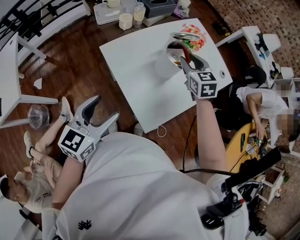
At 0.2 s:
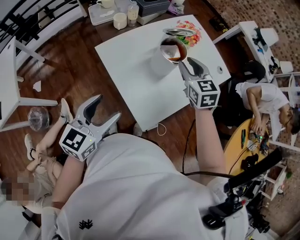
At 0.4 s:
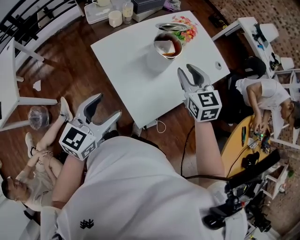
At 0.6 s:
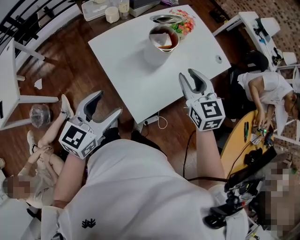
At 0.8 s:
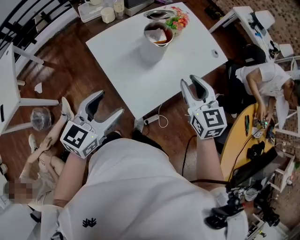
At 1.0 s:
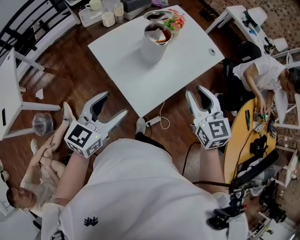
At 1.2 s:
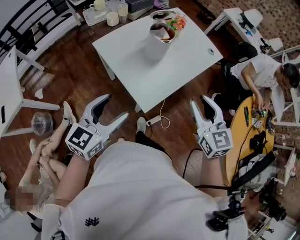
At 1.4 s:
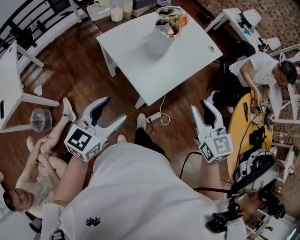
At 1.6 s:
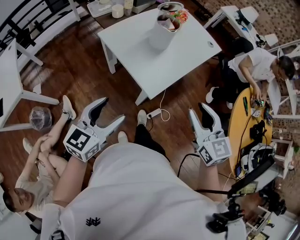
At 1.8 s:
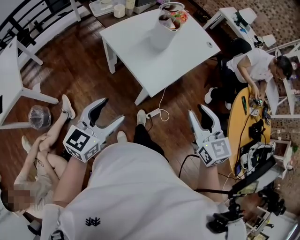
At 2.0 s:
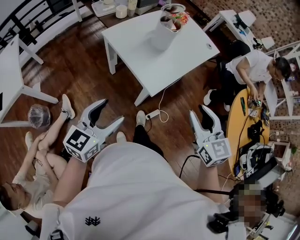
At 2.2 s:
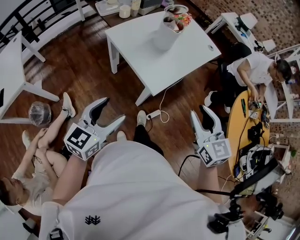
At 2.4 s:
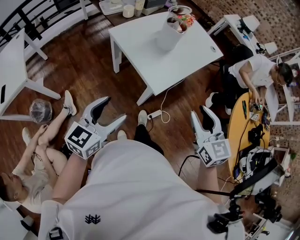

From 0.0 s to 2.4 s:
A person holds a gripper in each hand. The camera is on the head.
From 0.0 s to 1.2 s: The left gripper moves backward and to the right, roughly 15 cm. Meanwhile the right gripper heads backward, covering some 30 cm.
From 1.2 s to 2.4 s: Both grippers move backward, some 15 cm.

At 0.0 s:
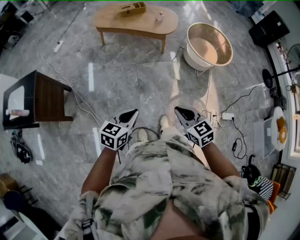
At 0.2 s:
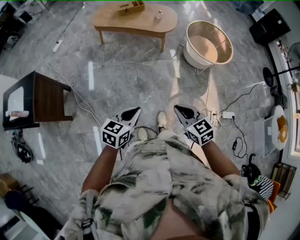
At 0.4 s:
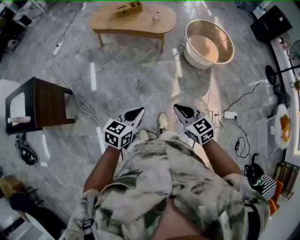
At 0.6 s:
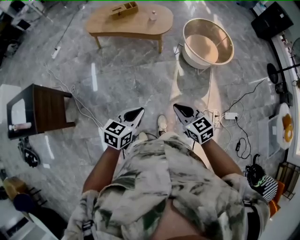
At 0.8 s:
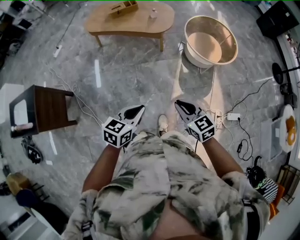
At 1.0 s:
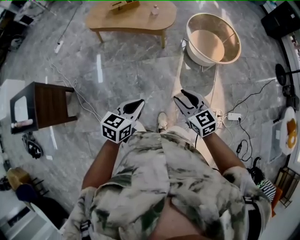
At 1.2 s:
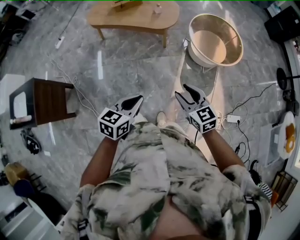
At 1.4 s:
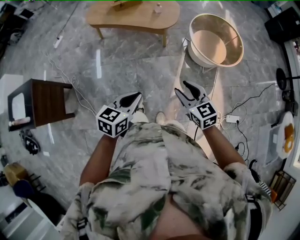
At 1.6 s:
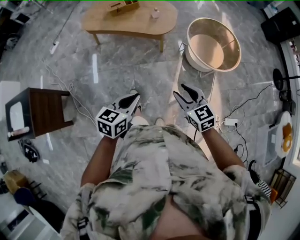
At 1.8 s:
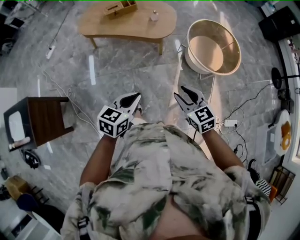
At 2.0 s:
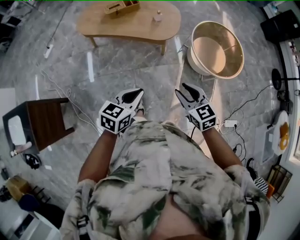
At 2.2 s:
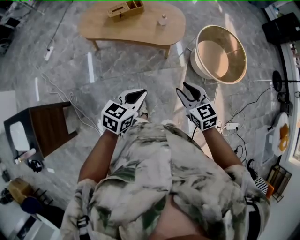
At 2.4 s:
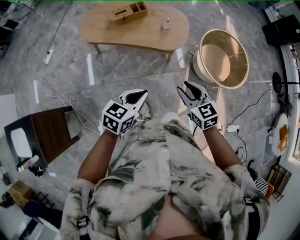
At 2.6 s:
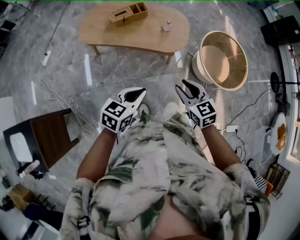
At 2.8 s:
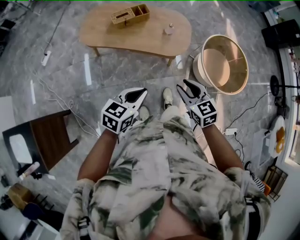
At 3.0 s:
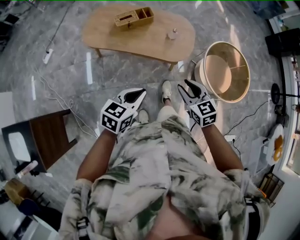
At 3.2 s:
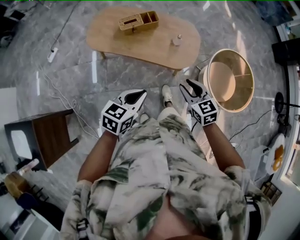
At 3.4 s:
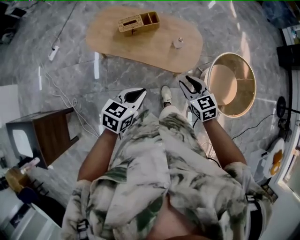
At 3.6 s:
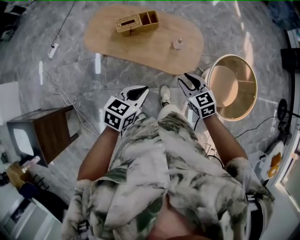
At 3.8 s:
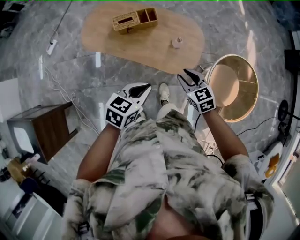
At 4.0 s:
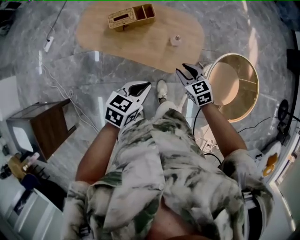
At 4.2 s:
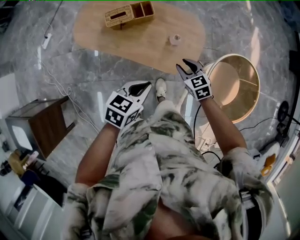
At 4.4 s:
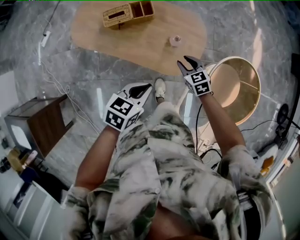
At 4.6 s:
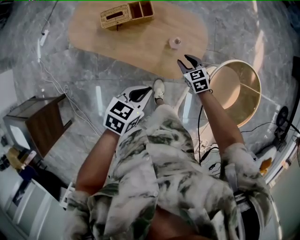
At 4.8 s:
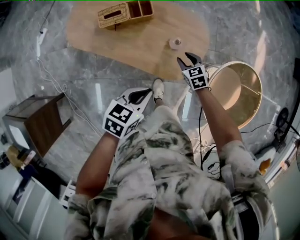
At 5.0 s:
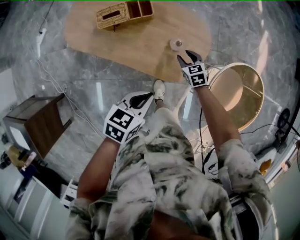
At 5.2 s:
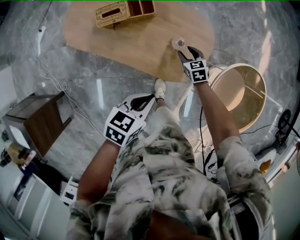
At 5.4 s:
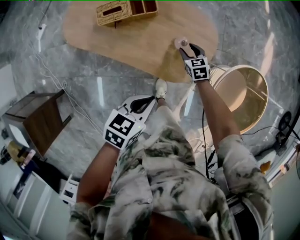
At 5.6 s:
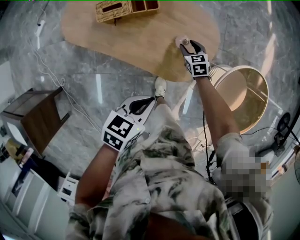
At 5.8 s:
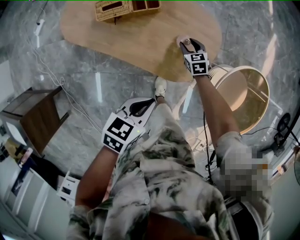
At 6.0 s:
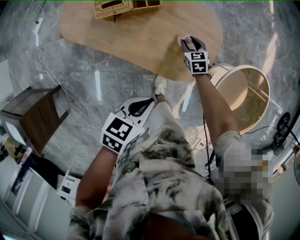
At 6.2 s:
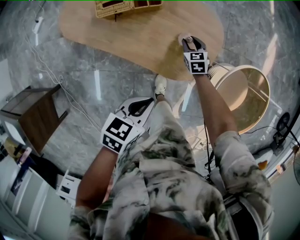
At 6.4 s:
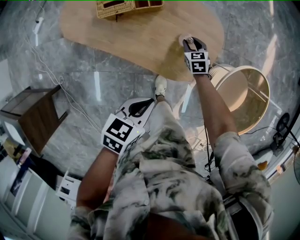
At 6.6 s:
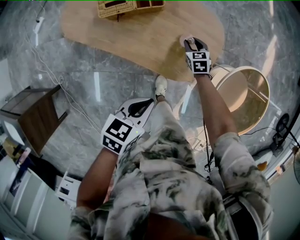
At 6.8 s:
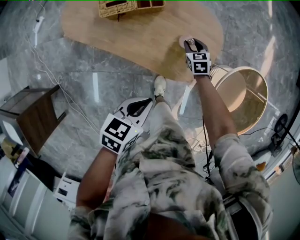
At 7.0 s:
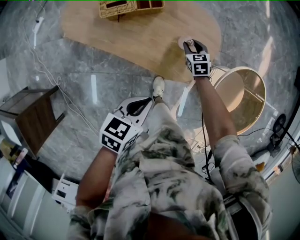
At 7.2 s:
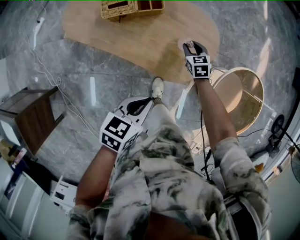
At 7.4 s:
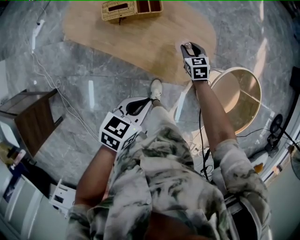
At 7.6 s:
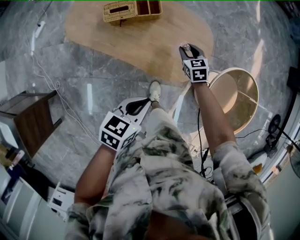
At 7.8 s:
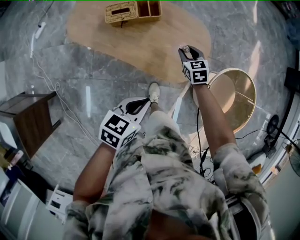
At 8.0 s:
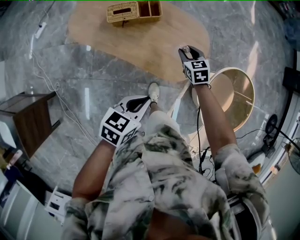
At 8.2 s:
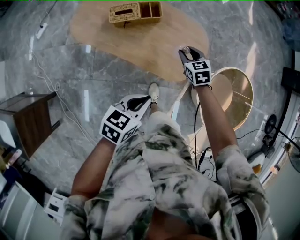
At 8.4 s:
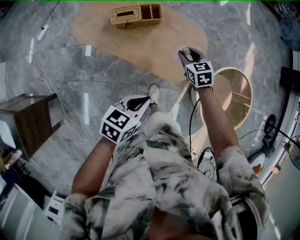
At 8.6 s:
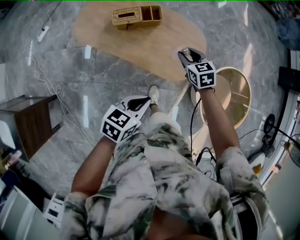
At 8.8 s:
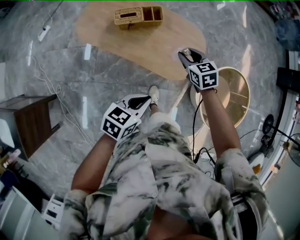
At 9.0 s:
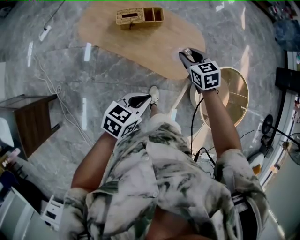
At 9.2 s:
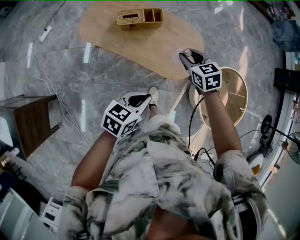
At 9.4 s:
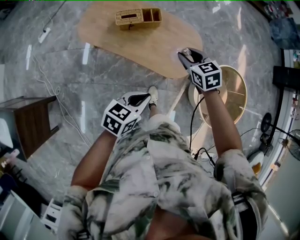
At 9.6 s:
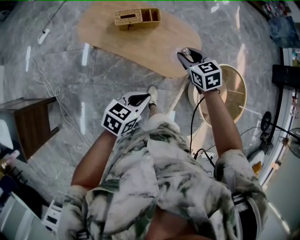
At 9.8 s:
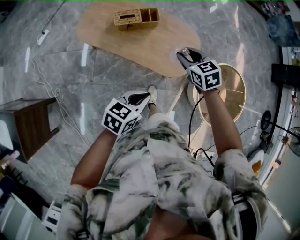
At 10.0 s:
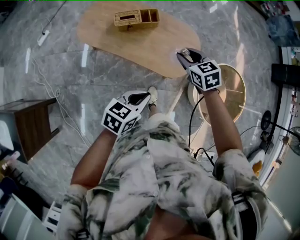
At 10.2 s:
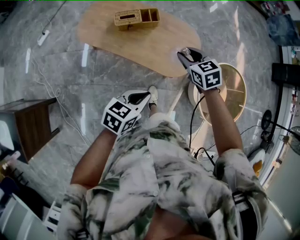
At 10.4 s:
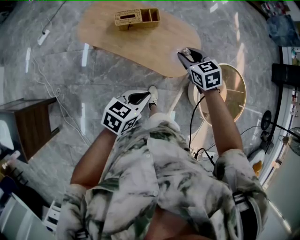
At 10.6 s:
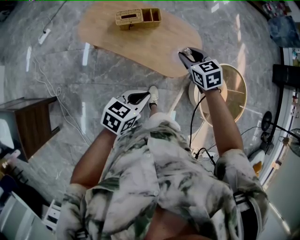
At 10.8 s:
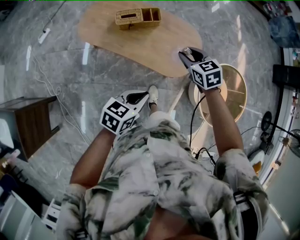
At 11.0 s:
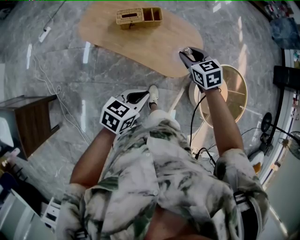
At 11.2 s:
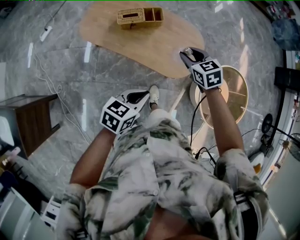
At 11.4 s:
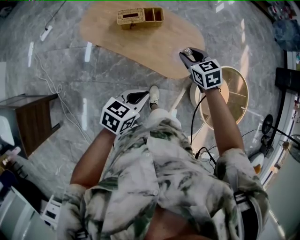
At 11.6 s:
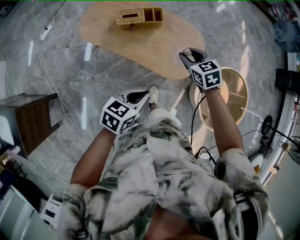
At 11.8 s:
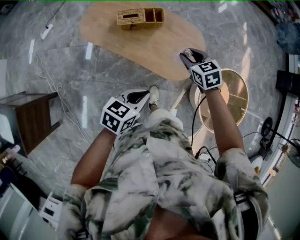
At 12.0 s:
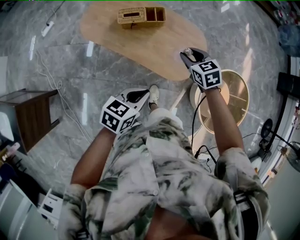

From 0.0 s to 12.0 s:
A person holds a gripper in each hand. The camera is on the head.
From 0.0 s to 1.6 s: The right gripper travels forward by roughly 30 cm, and opens its fingers; the left gripper goes roughly 30 cm forward and to the right.
From 1.6 s to 3.0 s: The two grippers travel together, forward and to the left, some 40 cm.
From 3.0 s to 4.4 s: The left gripper goes roughly 35 cm forward and to the right; the right gripper moves forward and downward, approximately 50 cm.
From 4.4 s to 6.0 s: The left gripper goes approximately 10 cm downward. The right gripper heads downward and forward, covering about 25 cm.
From 6.0 s to 7.6 s: The left gripper is displaced backward and upward by roughly 5 cm, while the right gripper shifts roughly 15 cm upward.
From 7.6 s to 9.0 s: The left gripper travels backward and upward by about 15 cm. The right gripper moves upward and backward, approximately 25 cm.
From 9.0 s to 10.4 s: The right gripper moves some 5 cm.
From 10.4 s to 12.0 s: Both grippers move forward, roughly 5 cm.

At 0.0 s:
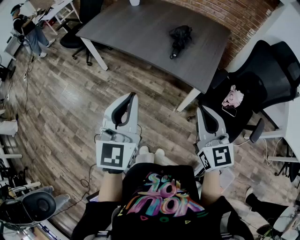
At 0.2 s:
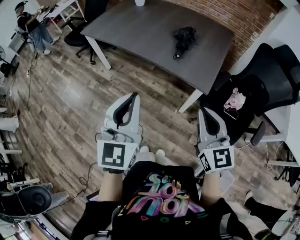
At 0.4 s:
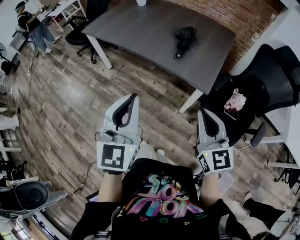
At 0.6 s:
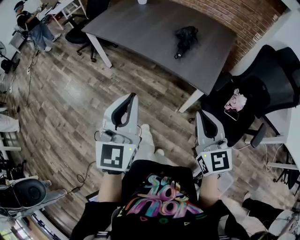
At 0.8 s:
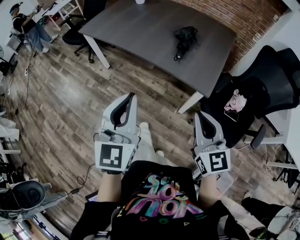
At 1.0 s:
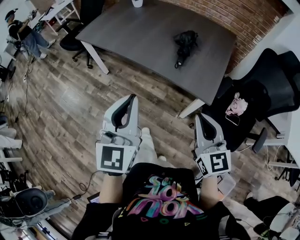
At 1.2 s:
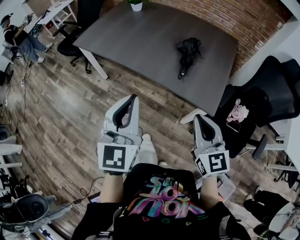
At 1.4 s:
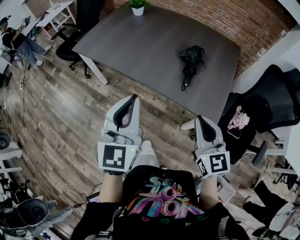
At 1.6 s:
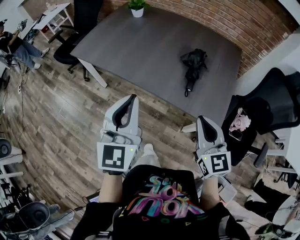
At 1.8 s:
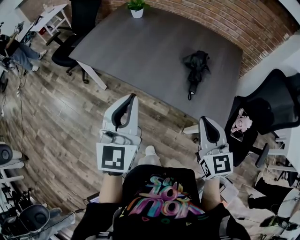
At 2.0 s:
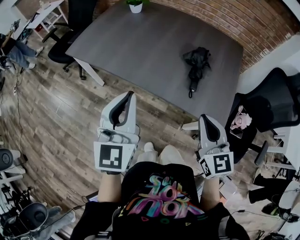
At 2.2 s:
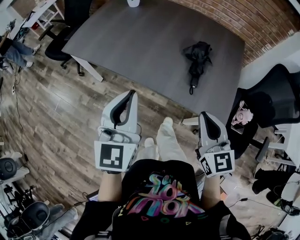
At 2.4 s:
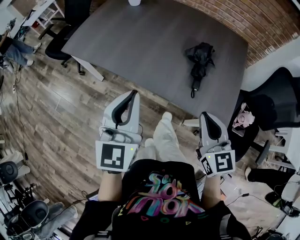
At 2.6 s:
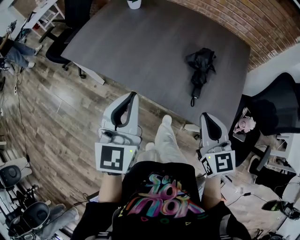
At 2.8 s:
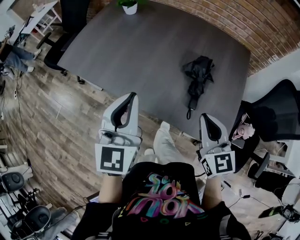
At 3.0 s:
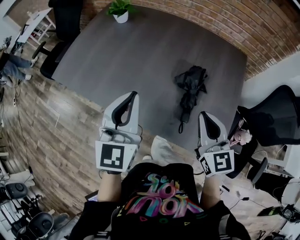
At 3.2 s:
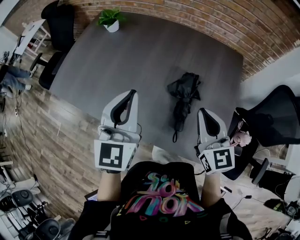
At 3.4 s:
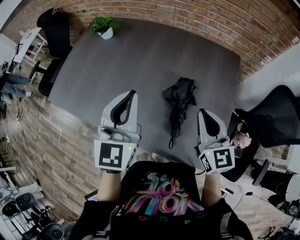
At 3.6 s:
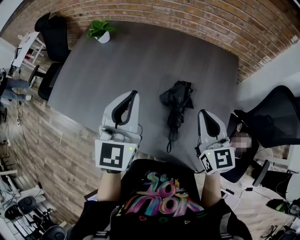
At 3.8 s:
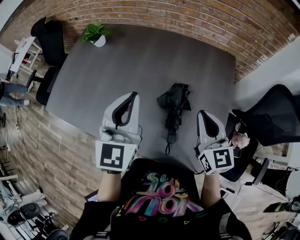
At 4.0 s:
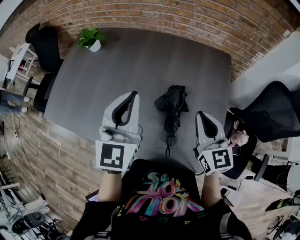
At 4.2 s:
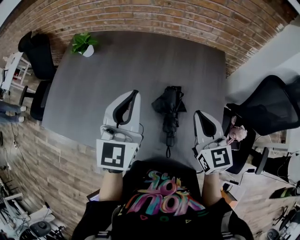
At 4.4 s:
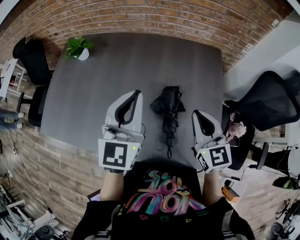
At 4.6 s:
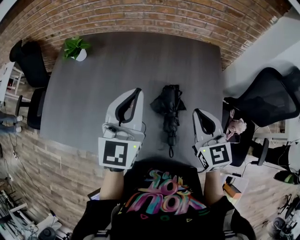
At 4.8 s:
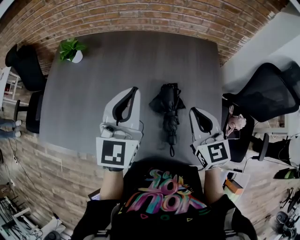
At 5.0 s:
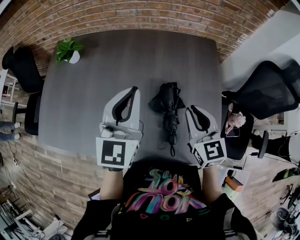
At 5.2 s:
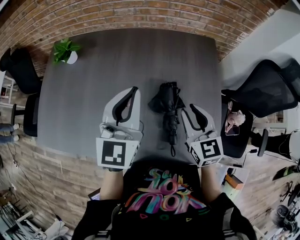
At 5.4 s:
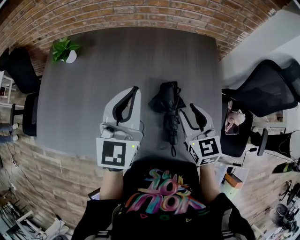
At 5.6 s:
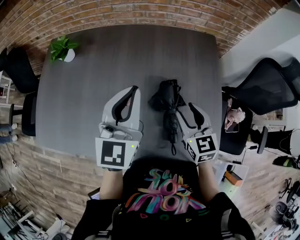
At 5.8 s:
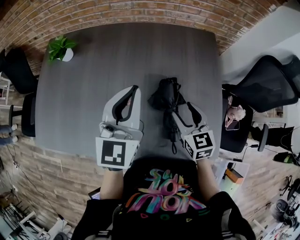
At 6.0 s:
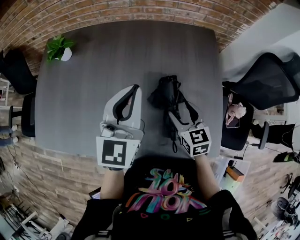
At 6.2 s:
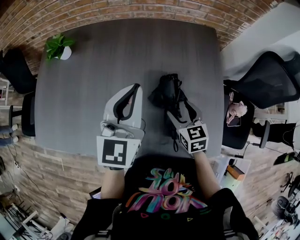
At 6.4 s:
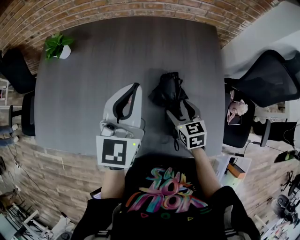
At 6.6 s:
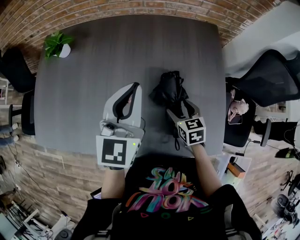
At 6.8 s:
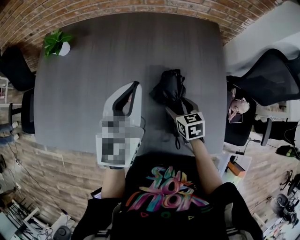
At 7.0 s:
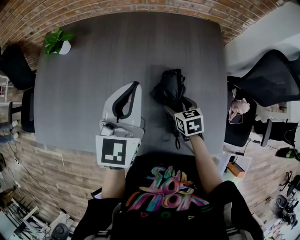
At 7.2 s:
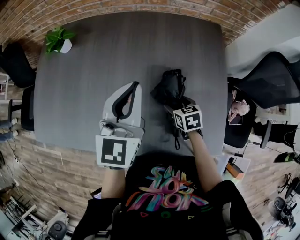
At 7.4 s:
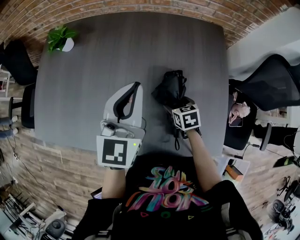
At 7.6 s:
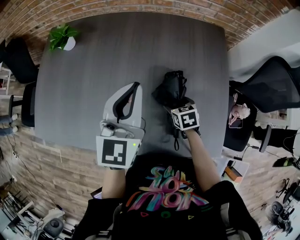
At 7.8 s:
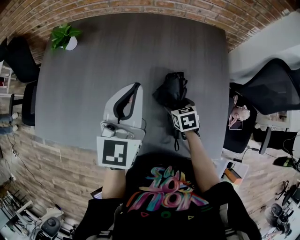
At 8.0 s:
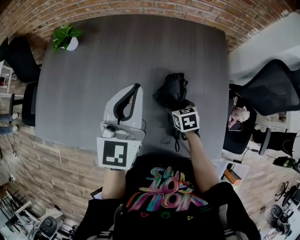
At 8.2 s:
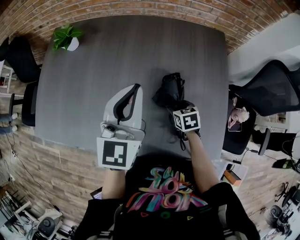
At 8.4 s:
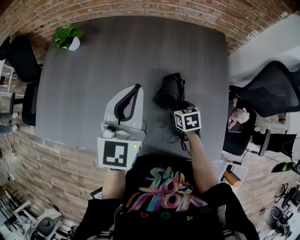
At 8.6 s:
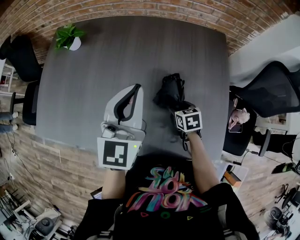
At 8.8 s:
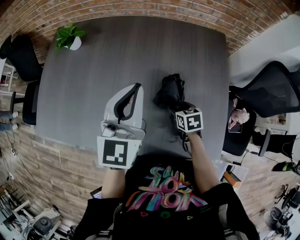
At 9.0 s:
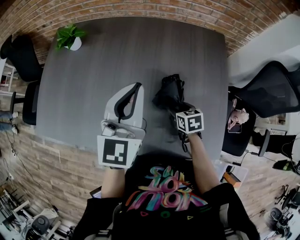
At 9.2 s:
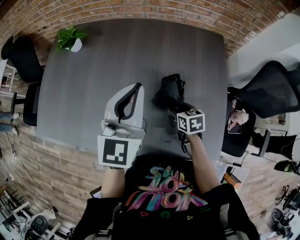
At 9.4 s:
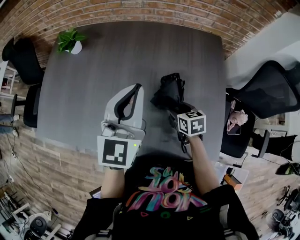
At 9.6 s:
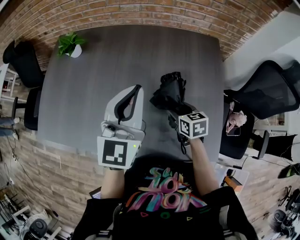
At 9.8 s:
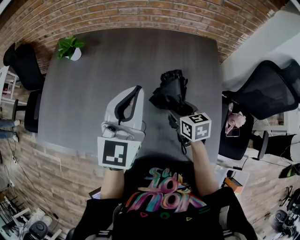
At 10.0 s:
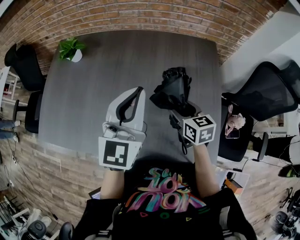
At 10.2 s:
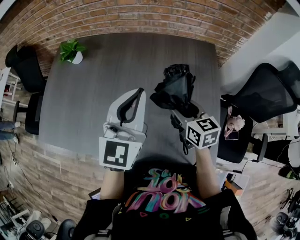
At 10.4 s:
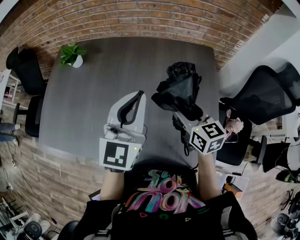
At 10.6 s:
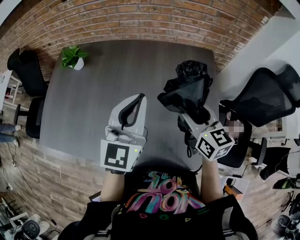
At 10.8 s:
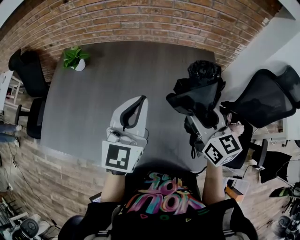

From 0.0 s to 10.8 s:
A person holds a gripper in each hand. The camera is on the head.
From 0.0 s to 1.6 s: Both grippers move forward, about 20 cm.
From 1.6 s to 3.0 s: The grippers both shift forward by approximately 20 cm.
From 3.0 s to 4.6 s: Both grippers move forward and to the right, some 15 cm.
From 4.6 s to 6.2 s: The right gripper goes roughly 15 cm downward, rotates some 20 degrees, and opens. The left gripper moves roughly 5 cm.
From 6.2 s to 7.8 s: The right gripper travels downward by roughly 10 cm, and turns by some 20 degrees.
From 7.8 s to 9.2 s: The grippers make only small movements.
From 9.2 s to 10.8 s: The right gripper is displaced upward by about 30 cm, and tilts its fingers approximately 40 degrees upward.
